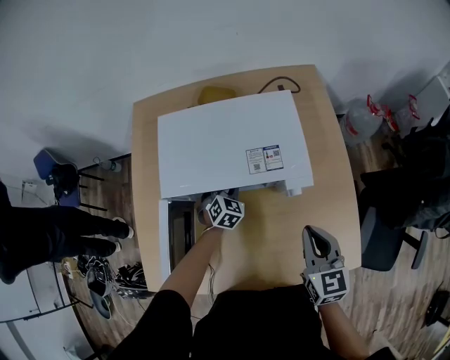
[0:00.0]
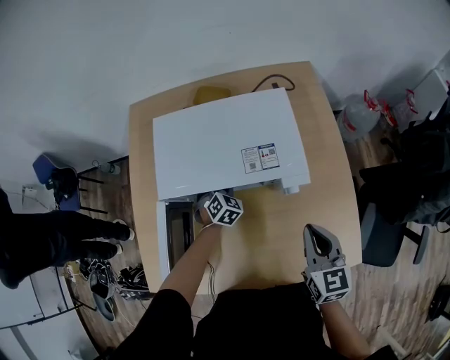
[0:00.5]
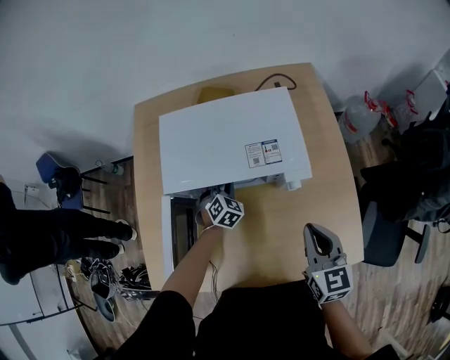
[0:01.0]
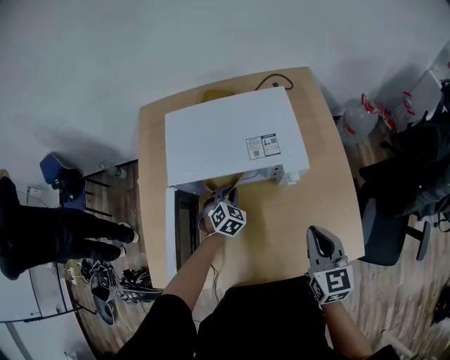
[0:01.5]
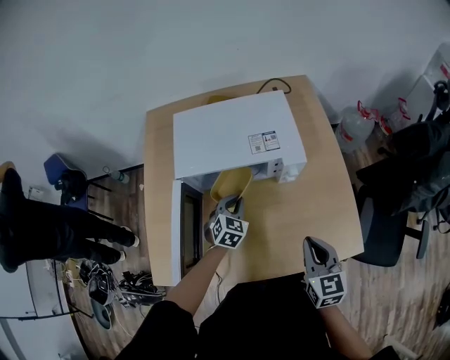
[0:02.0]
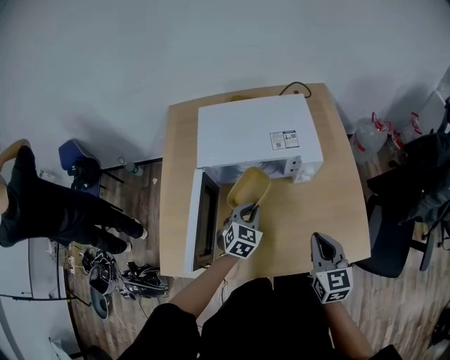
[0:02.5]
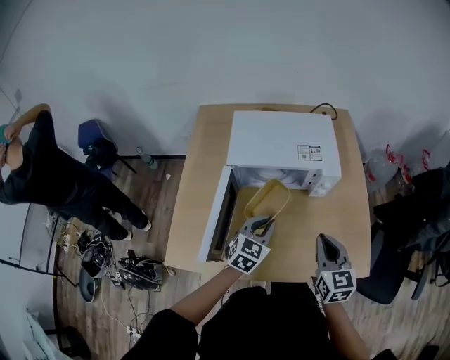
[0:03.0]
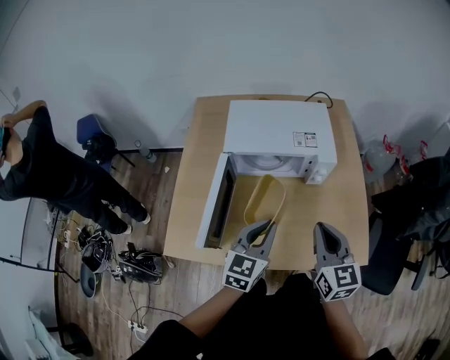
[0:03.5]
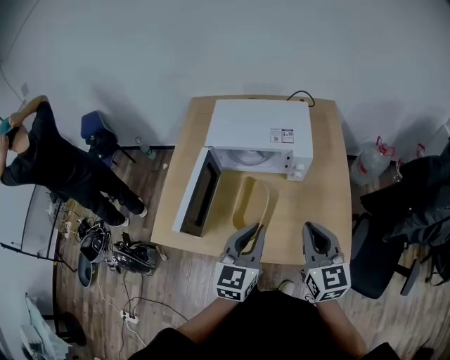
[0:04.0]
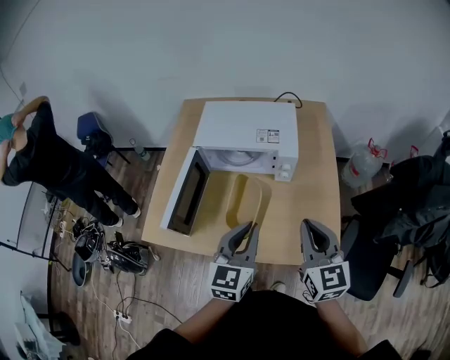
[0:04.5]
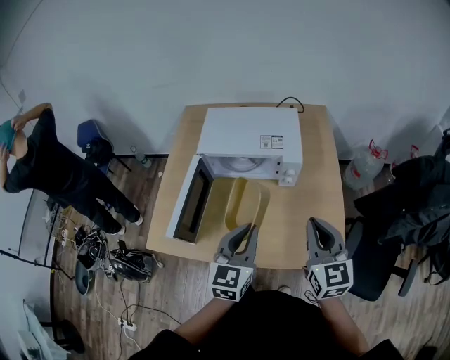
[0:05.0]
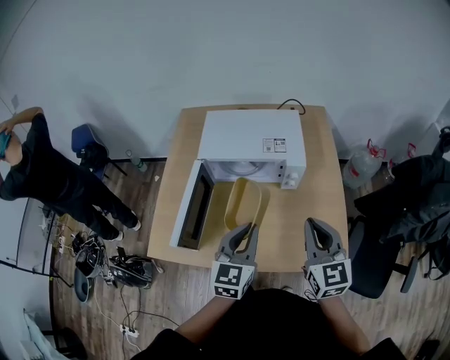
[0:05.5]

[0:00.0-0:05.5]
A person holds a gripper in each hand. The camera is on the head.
0:00.0 to 0:02.0: The left gripper heads backward and upward, covering approximately 15 cm, and closes its fingers; the right gripper heads backward, covering some 10 cm.
0:02.0 to 0:03.5: The left gripper travels upward and backward by about 25 cm, and changes its angle by about 30 degrees. The right gripper moves upward and to the left, roughly 10 cm.
0:03.5 to 0:05.5: The right gripper is displaced to the right by about 5 cm.

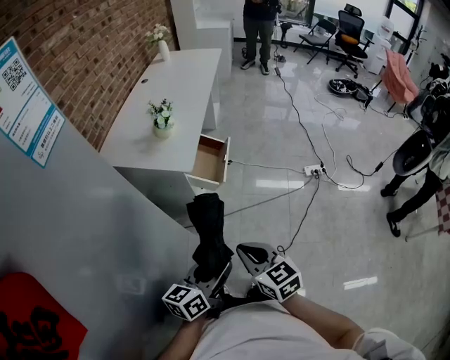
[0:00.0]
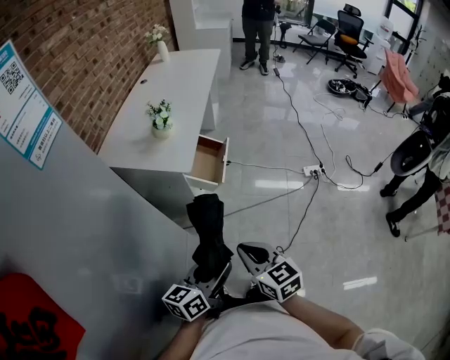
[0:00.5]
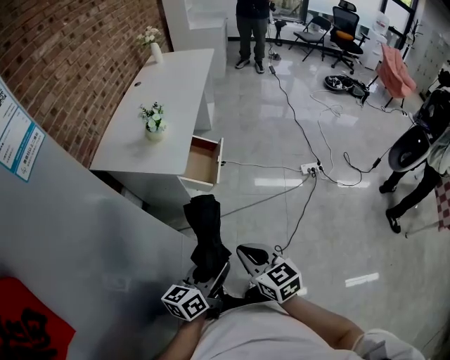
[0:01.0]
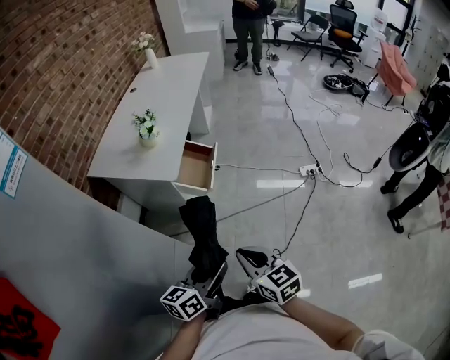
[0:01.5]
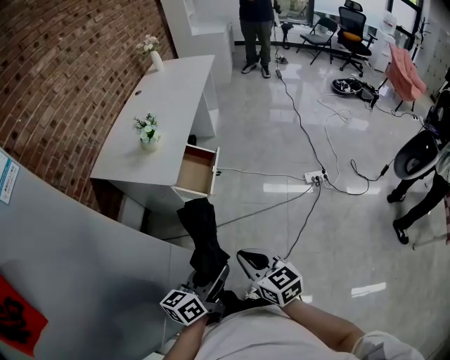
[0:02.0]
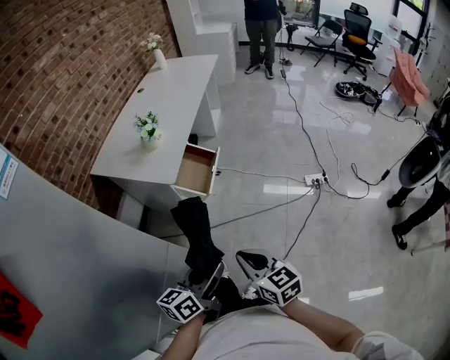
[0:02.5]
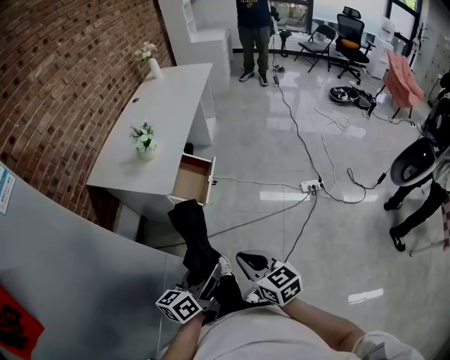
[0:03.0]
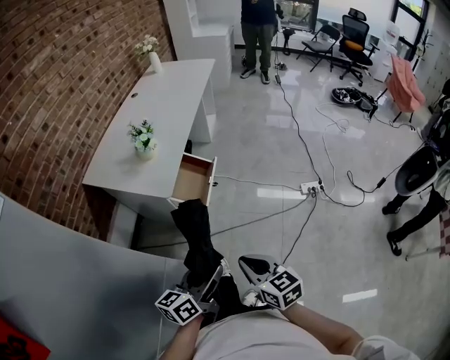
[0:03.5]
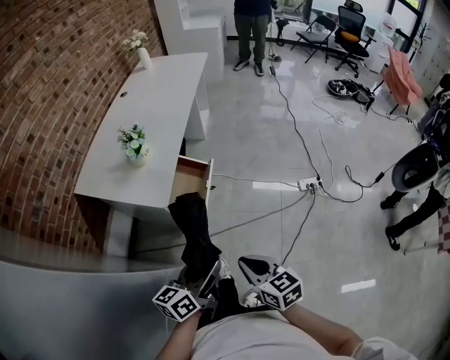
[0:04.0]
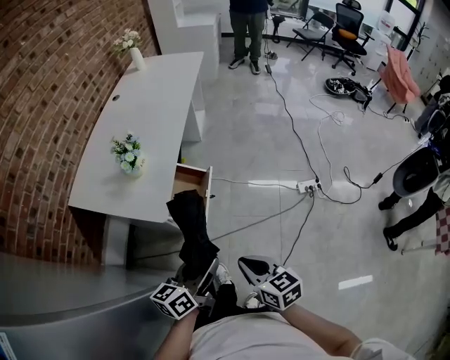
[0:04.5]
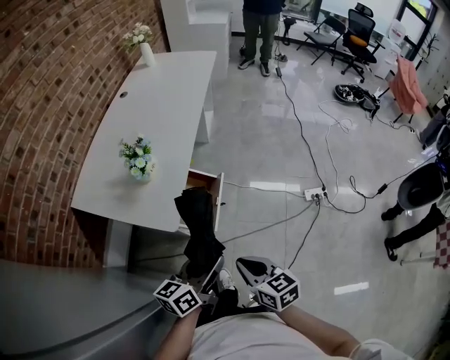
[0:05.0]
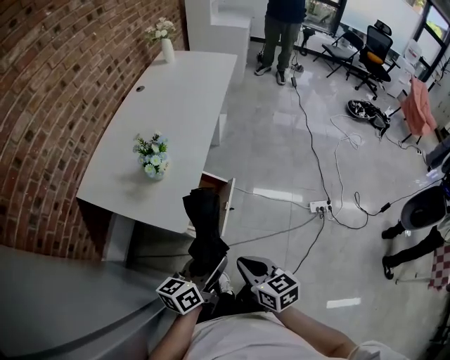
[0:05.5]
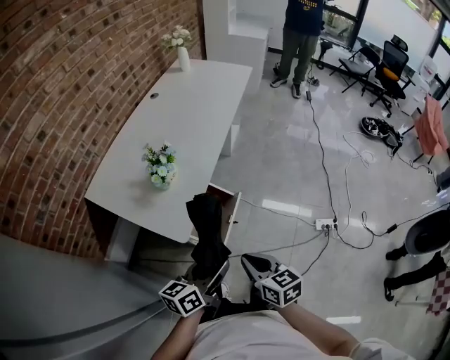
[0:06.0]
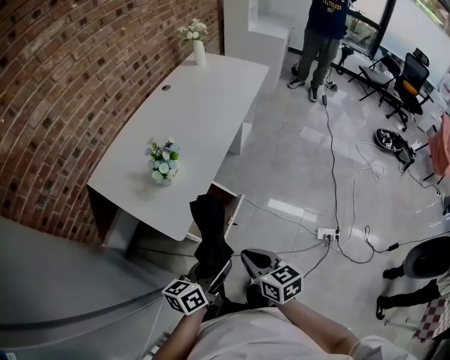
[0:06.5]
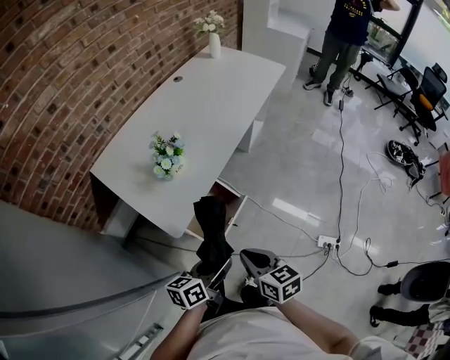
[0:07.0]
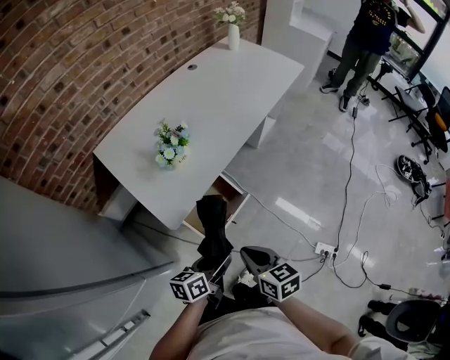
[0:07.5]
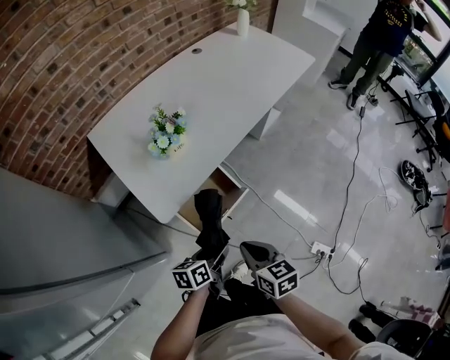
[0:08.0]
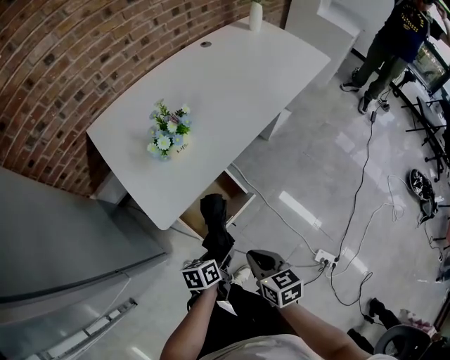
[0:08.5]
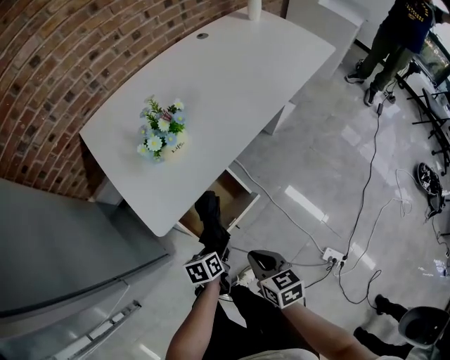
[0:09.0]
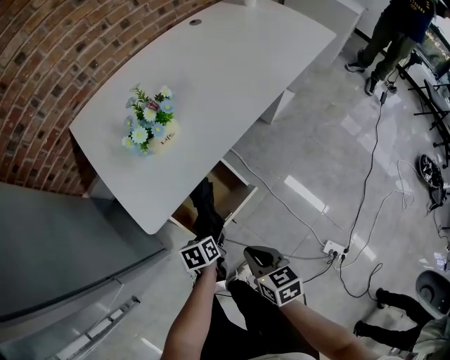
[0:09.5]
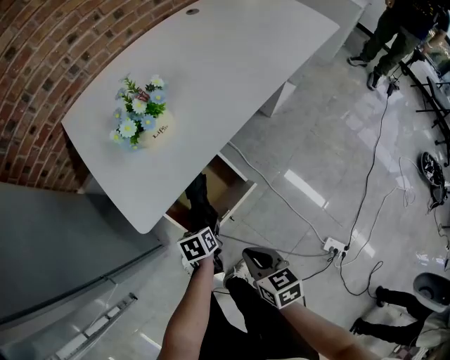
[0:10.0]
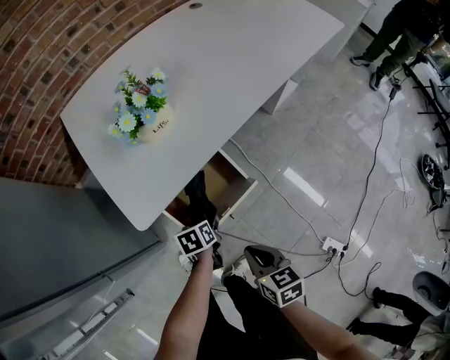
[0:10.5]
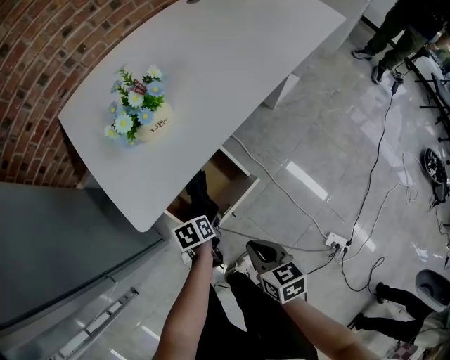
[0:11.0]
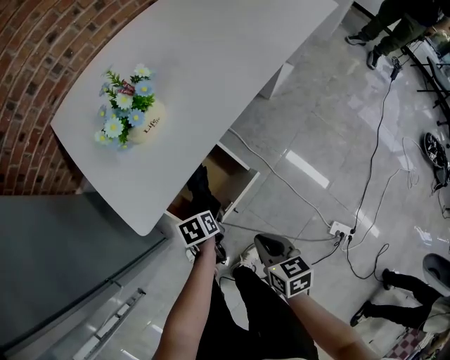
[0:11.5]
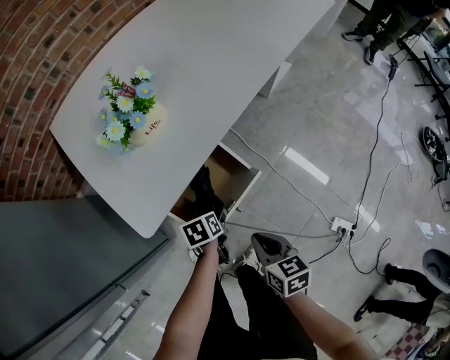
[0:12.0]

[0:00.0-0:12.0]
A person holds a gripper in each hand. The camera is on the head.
0:00.0 to 0:02.0: Both grippers travel together to the right, about 10 cm.
0:02.0 to 0:04.0: Both grippers move forward, approximately 10 cm.
0:04.0 to 0:06.0: Both grippers travel together forward, approximately 20 cm.
0:06.0 to 0:08.0: The right gripper travels forward, to the right and downward by about 15 cm, and changes its angle by about 20 degrees. The left gripper goes about 20 cm downward and to the right, and changes its angle by some 40 degrees.
0:08.0 to 0:10.0: The left gripper goes approximately 20 cm downward and forward, and rotates approximately 30 degrees, while the right gripper shifts roughly 15 cm downward.
0:10.0 to 0:12.0: There are only small adjustments of the grippers.

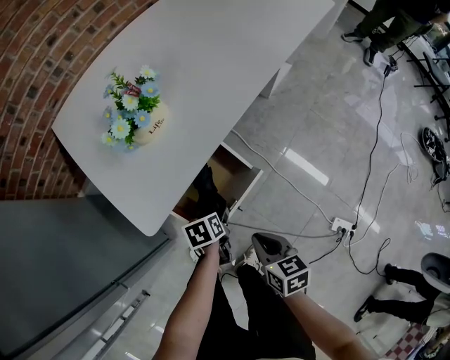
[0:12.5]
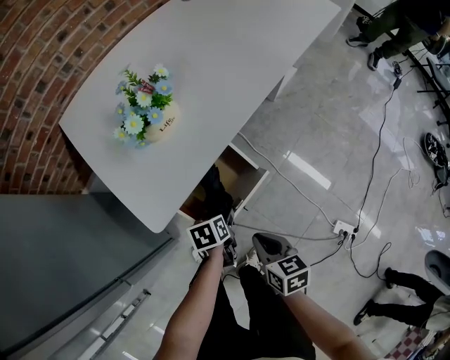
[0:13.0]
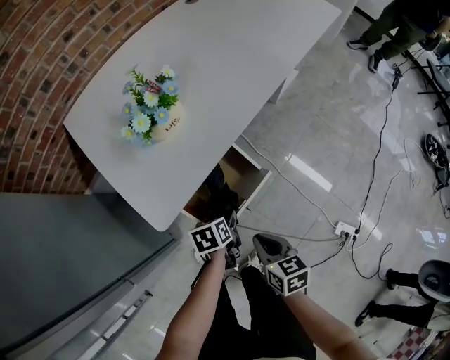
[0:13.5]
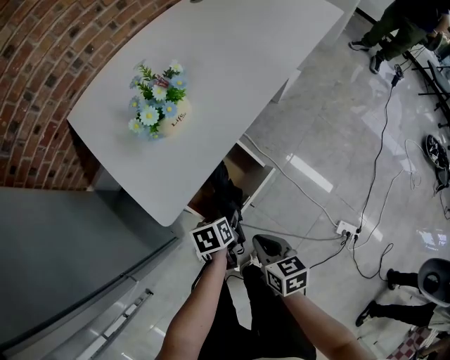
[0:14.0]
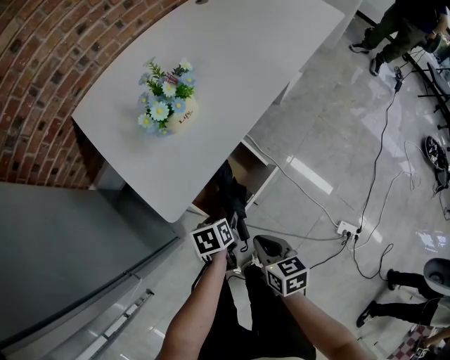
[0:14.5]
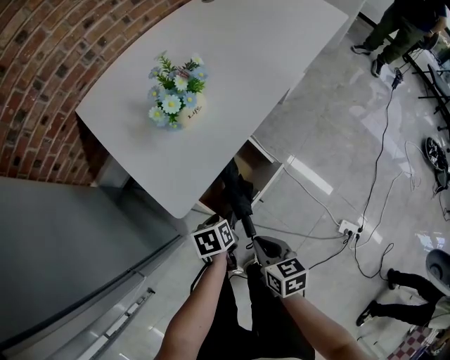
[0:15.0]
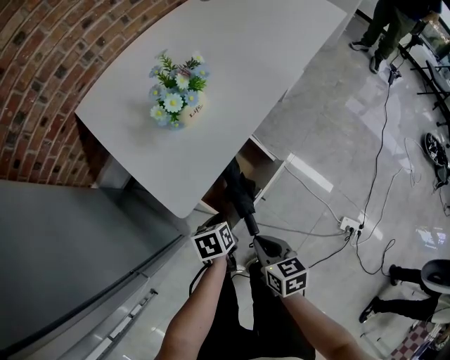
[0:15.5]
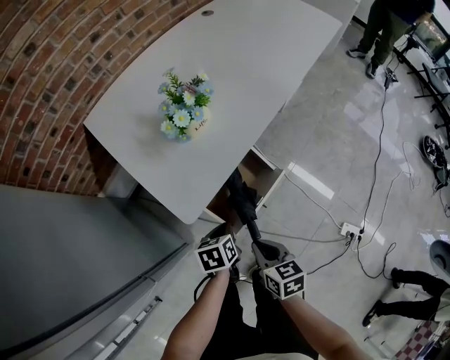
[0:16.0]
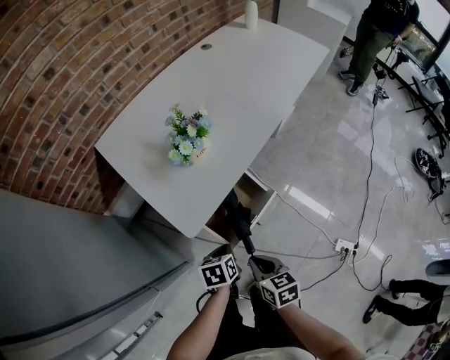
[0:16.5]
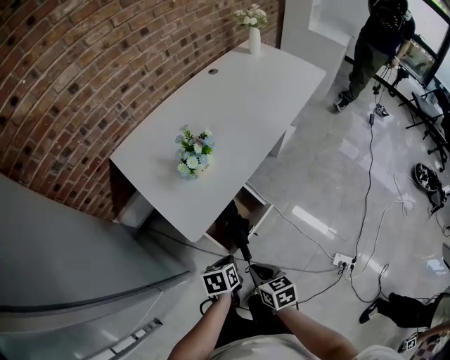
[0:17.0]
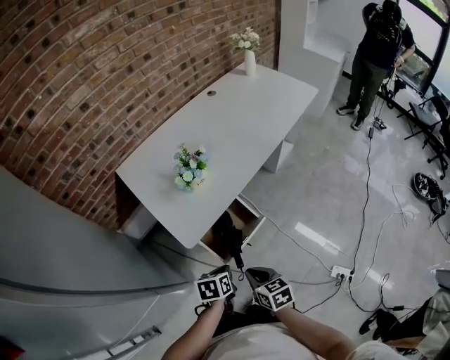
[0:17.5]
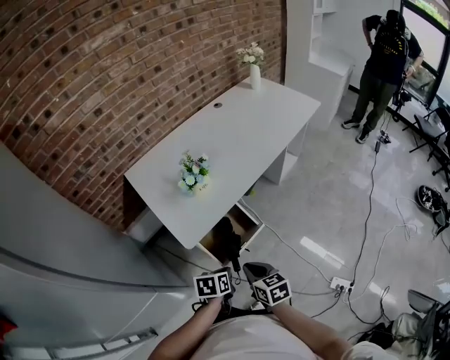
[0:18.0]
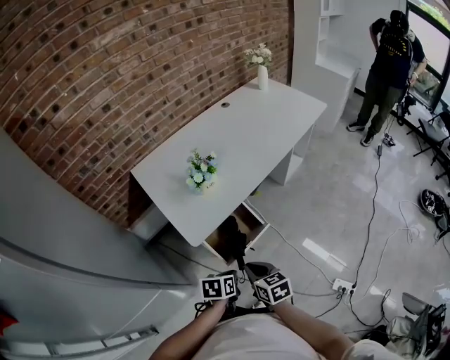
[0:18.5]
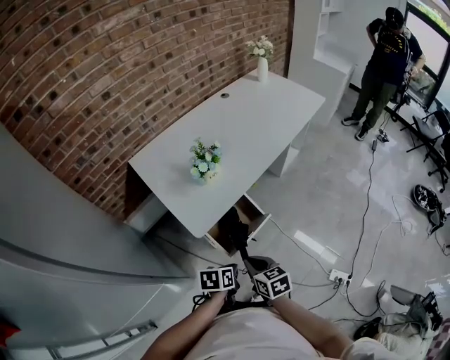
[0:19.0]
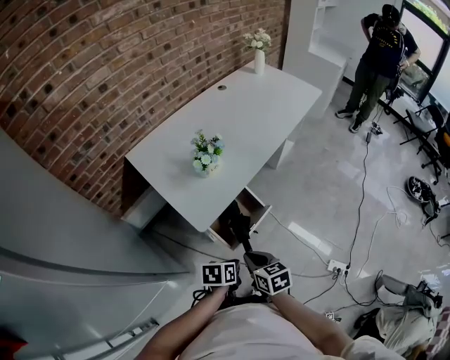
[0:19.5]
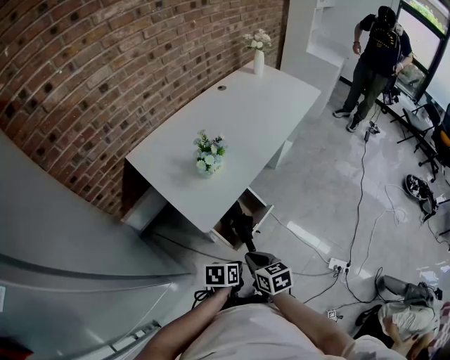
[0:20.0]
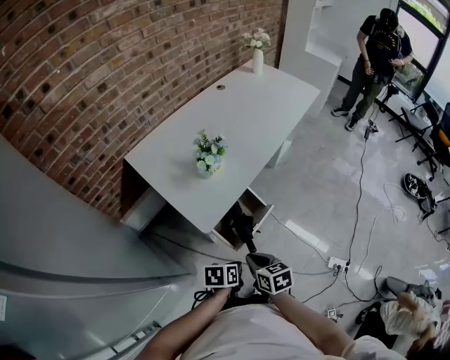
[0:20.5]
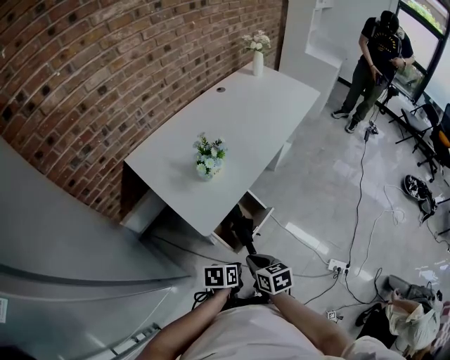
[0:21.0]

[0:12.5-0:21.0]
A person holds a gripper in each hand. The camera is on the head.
0:12.5 to 0:14.5: The right gripper moves to the left, roughly 5 cm. The left gripper moves about 5 cm.
0:14.5 to 0:16.5: The right gripper moves upward, about 5 cm; the left gripper moves upward, some 10 cm, and closes its fingers.
0:16.5 to 0:19.0: The right gripper moves upward, roughly 10 cm. The left gripper heads upward and backward, covering about 15 cm.
0:19.0 to 0:21.0: The grippers stay close to where they were, moving slightly.

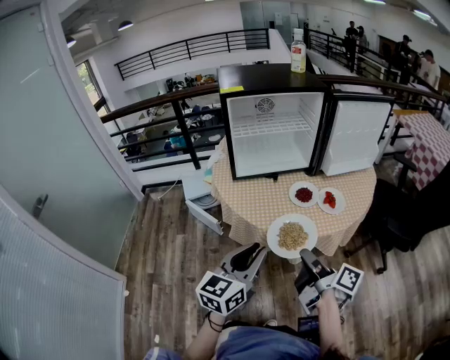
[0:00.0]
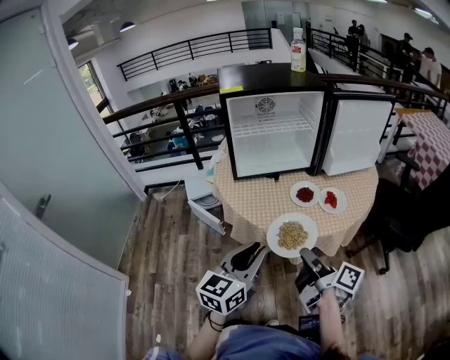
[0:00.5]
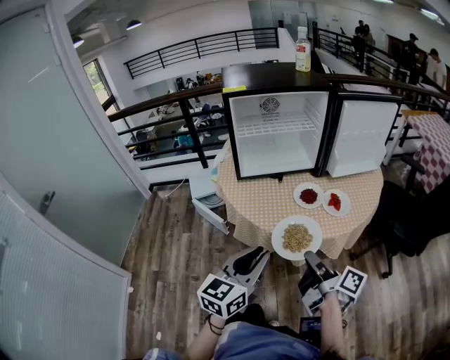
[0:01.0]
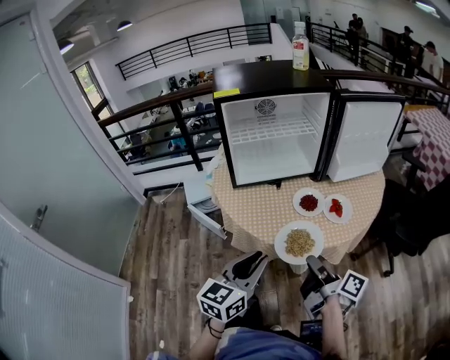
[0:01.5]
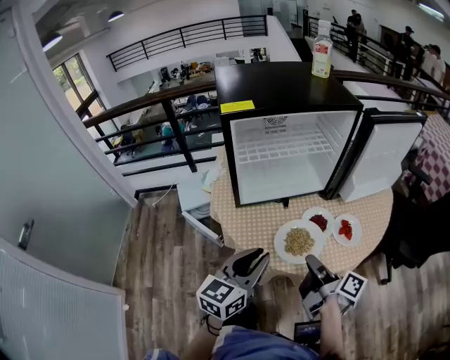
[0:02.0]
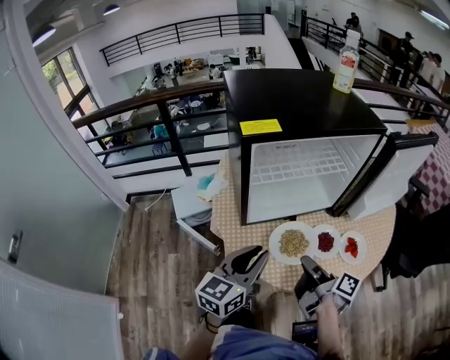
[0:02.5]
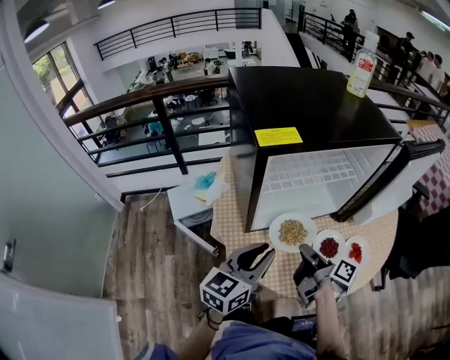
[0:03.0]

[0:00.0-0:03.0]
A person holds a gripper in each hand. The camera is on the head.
0:00.0 to 0:01.5: The two grippers go some 5 cm forward.
0:01.5 to 0:03.0: Both grippers travel together forward and to the left, approximately 30 cm.
